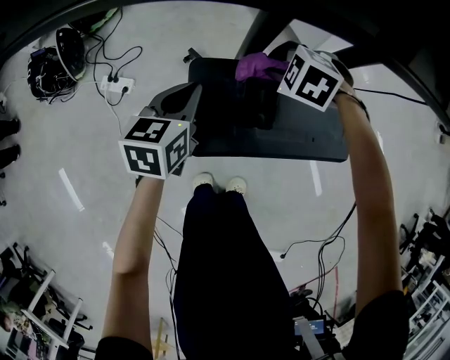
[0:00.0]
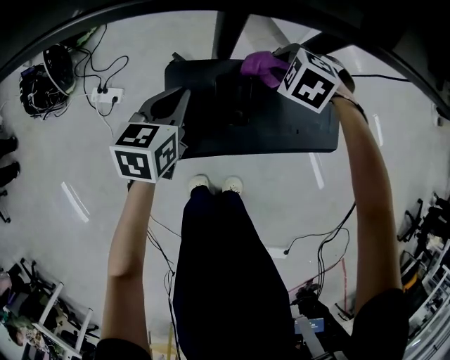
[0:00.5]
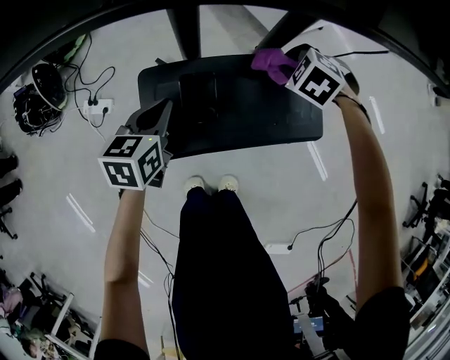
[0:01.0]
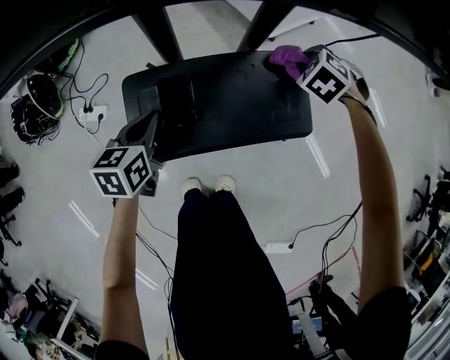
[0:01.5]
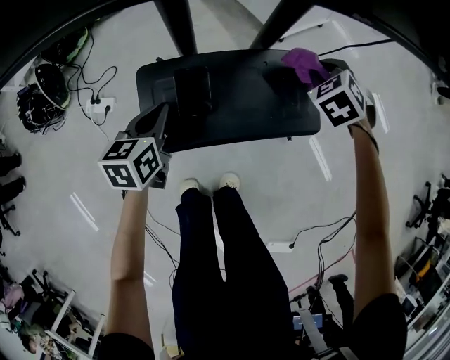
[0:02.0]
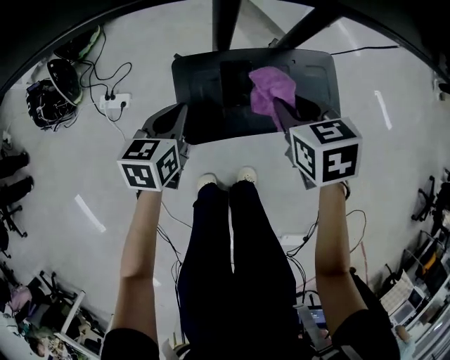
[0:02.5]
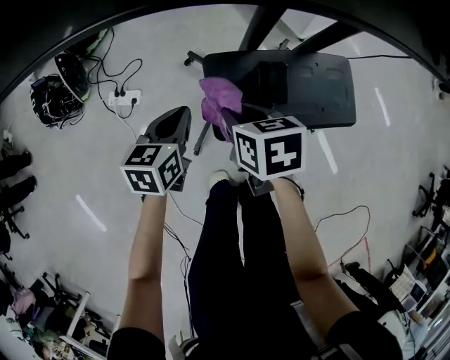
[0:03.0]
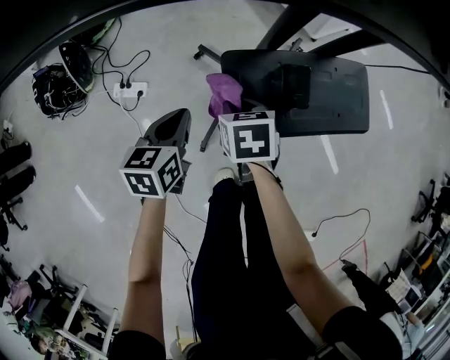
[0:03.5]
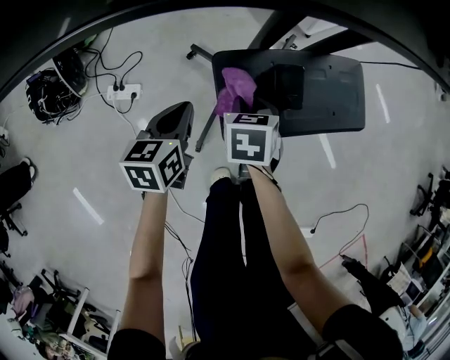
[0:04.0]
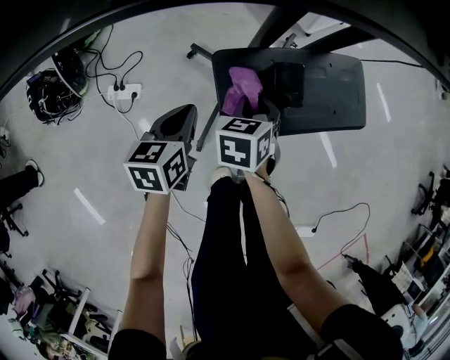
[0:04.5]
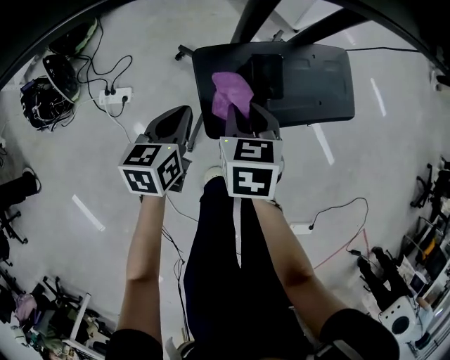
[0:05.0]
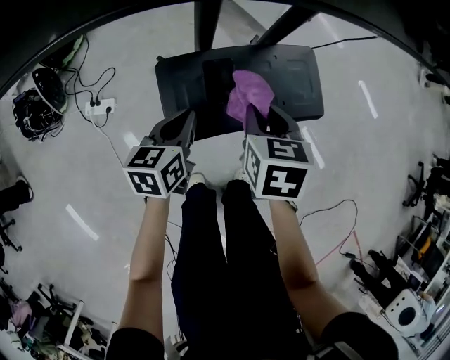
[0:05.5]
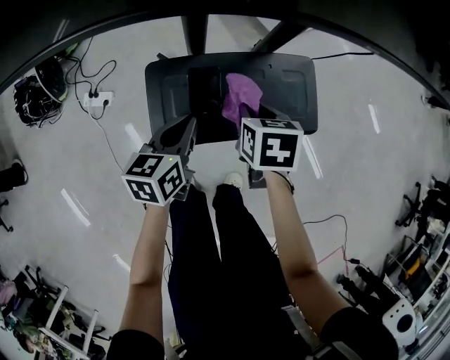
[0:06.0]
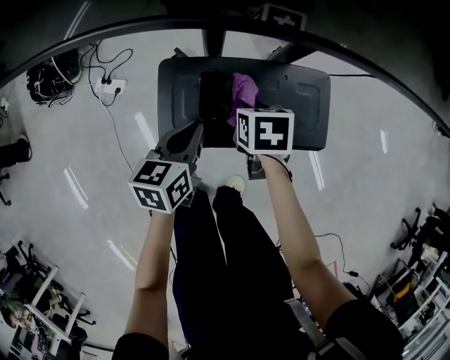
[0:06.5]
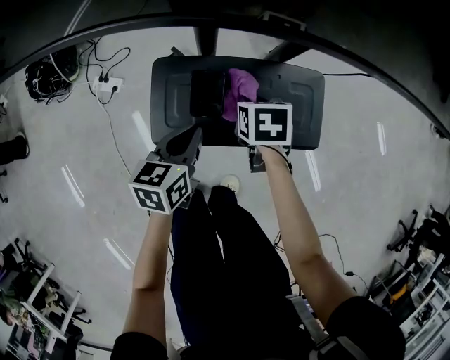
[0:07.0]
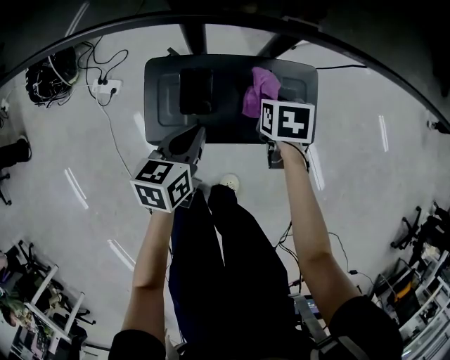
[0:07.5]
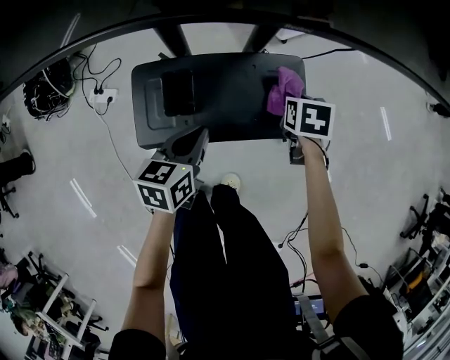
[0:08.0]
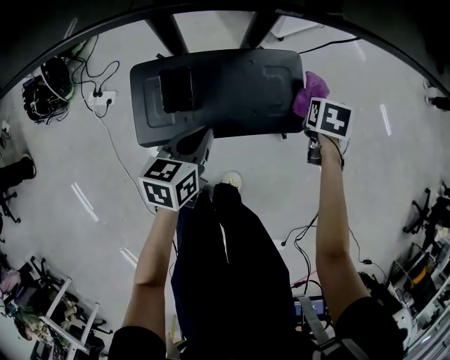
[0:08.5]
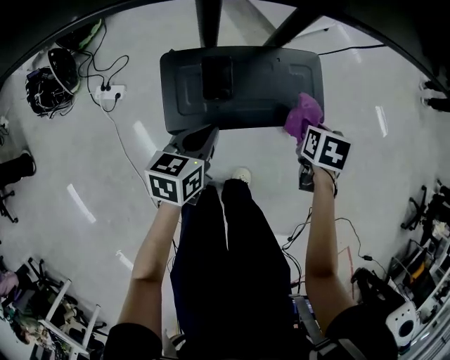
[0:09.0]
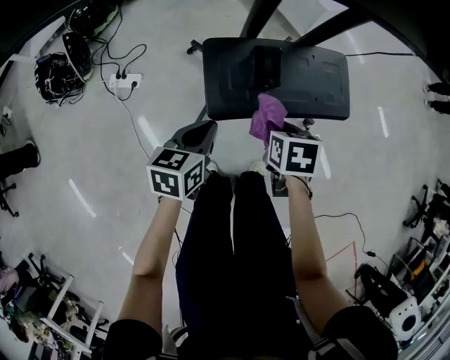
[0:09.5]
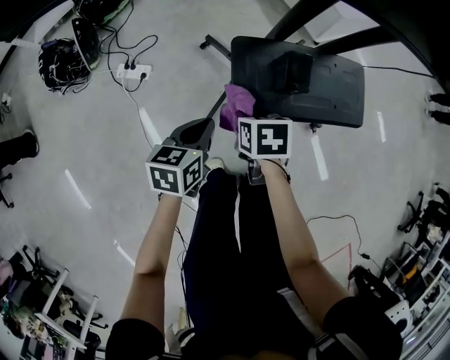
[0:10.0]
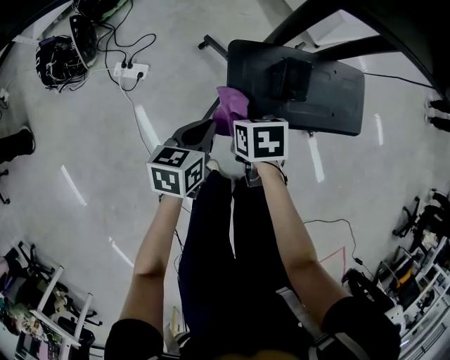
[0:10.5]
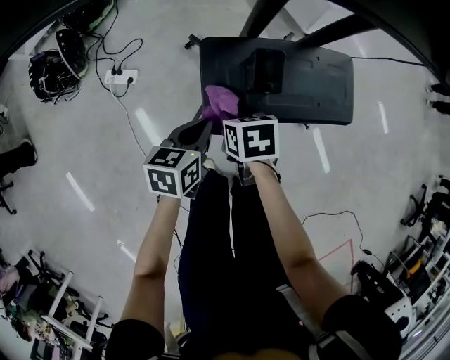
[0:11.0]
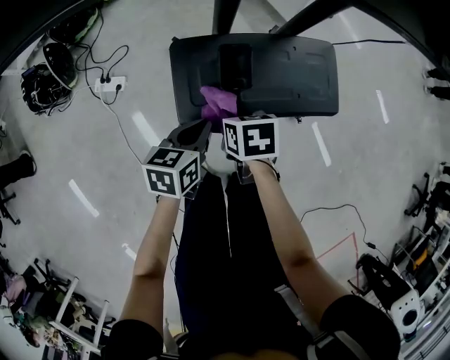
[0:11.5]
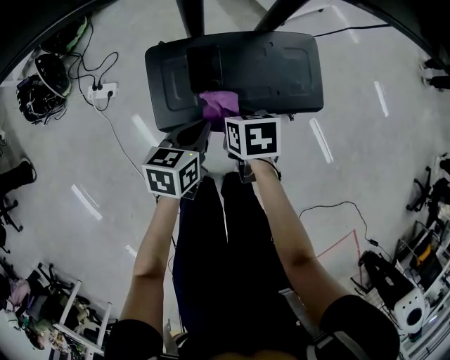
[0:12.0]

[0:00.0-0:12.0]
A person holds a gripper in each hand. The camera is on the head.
0:00.0 to 0:02.0: The right gripper changes place by roughly 25 cm, and swivels roughly 40 degrees, while the left gripper ends up approximately 10 cm from where it was.
0:02.0 to 0:04.0: The right gripper heads to the left, covering roughly 35 cm, and twists approximately 50 degrees clockwise, seen from behind; the left gripper is displaced to the left by approximately 15 cm.
0:04.0 to 0:06.0: Both grippers move to the right, approximately 20 cm.
0:06.0 to 0:08.0: The left gripper moves to the right, roughly 10 cm, while the right gripper is displaced to the right by roughly 20 cm.
0:08.0 to 0:10.0: The left gripper ends up some 30 cm from where it was; the right gripper changes place by roughly 40 cm.
0:10.0 to 0:12.0: The two grippers go approximately 20 cm to the right.

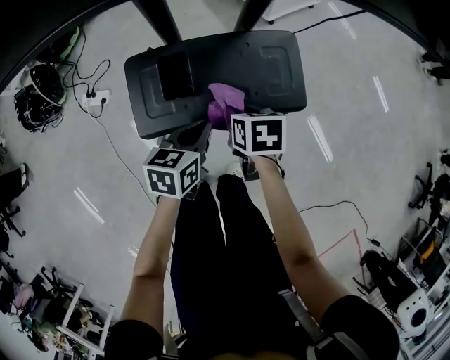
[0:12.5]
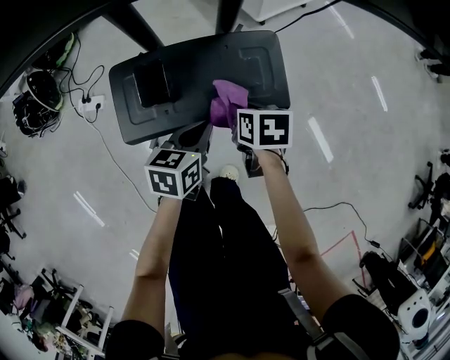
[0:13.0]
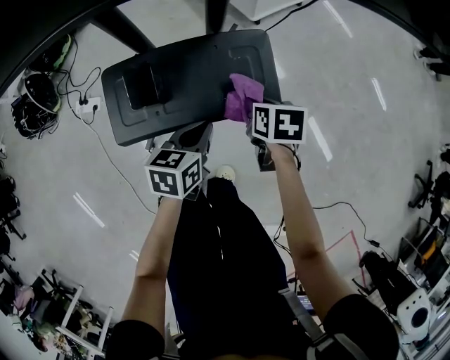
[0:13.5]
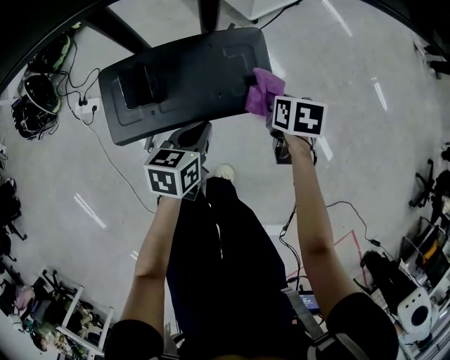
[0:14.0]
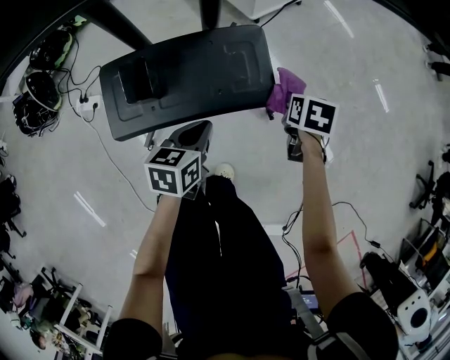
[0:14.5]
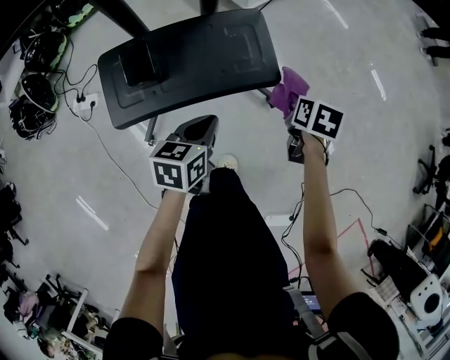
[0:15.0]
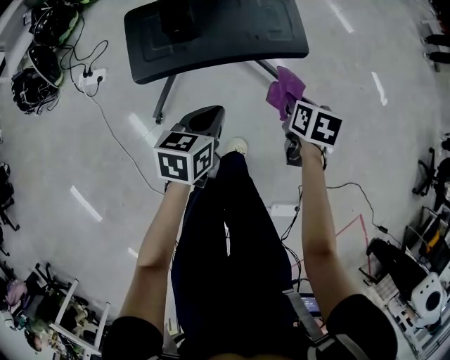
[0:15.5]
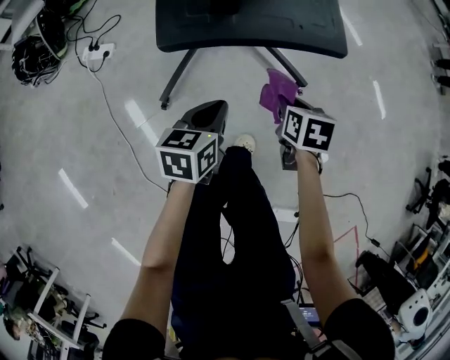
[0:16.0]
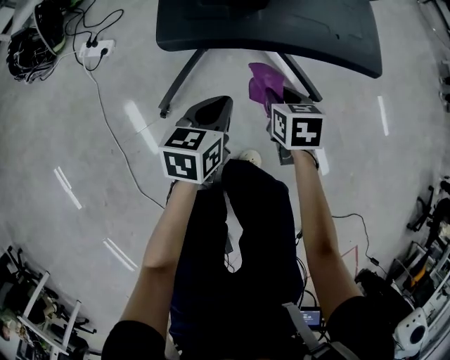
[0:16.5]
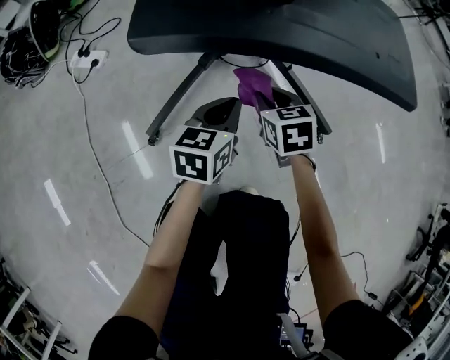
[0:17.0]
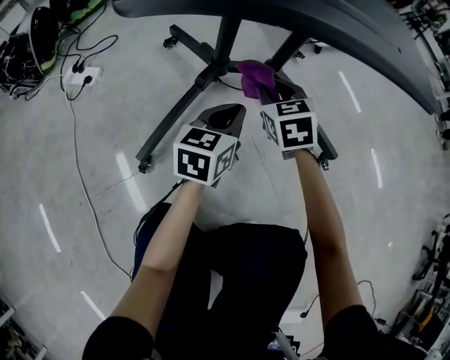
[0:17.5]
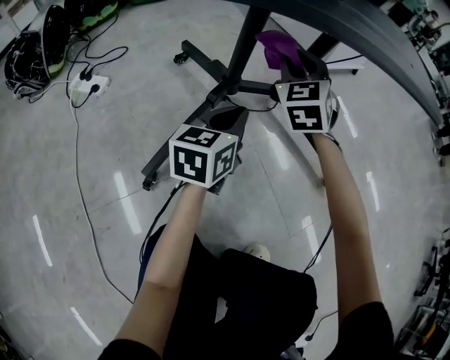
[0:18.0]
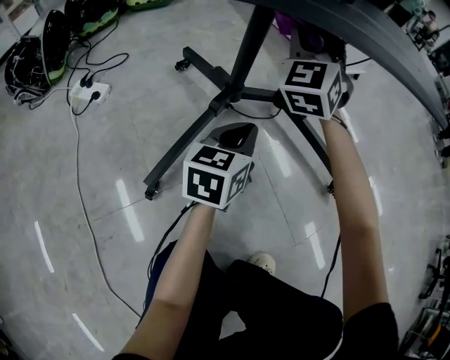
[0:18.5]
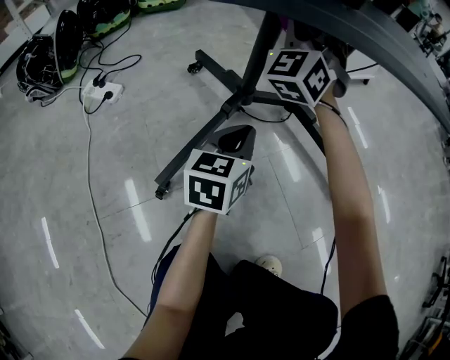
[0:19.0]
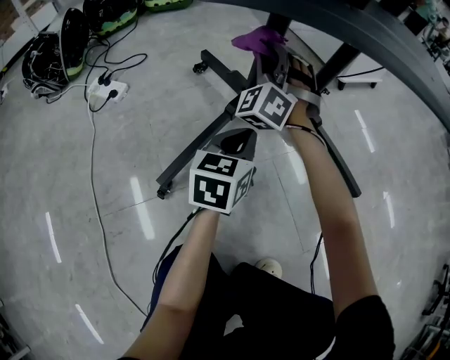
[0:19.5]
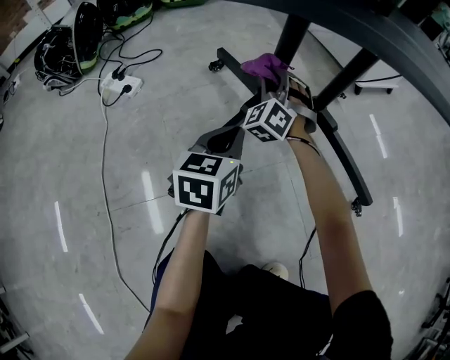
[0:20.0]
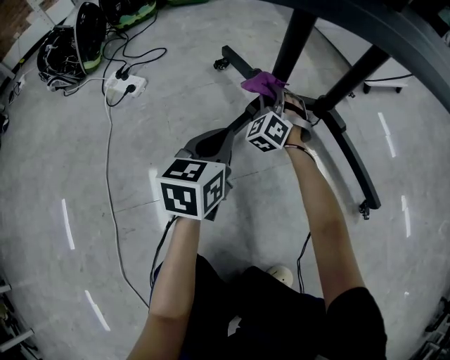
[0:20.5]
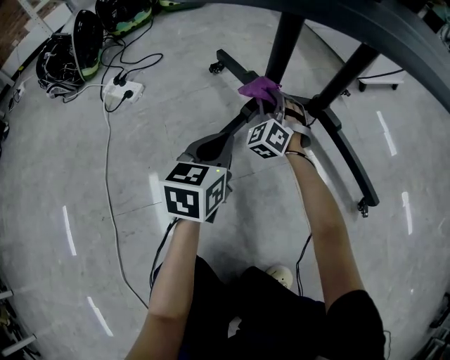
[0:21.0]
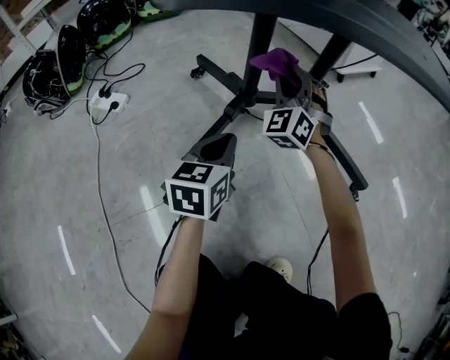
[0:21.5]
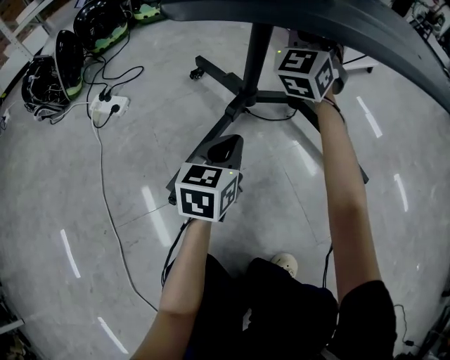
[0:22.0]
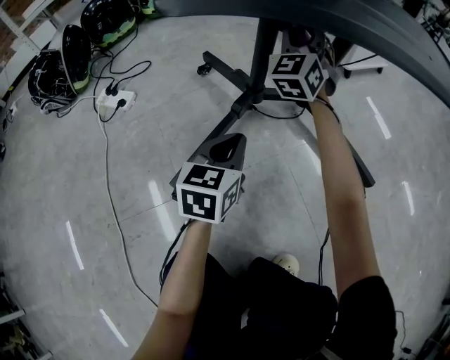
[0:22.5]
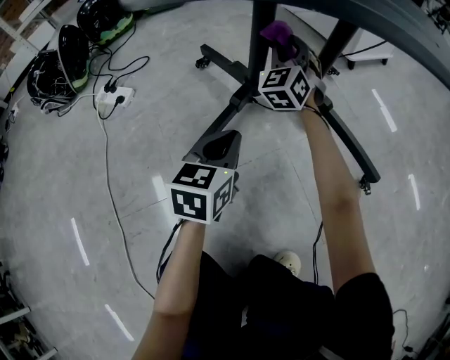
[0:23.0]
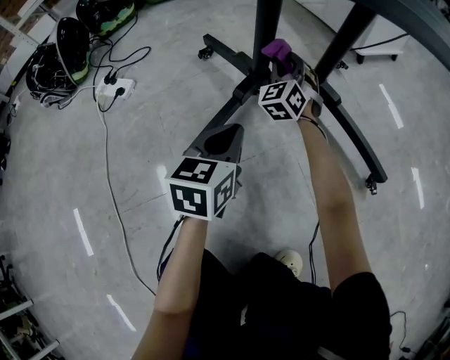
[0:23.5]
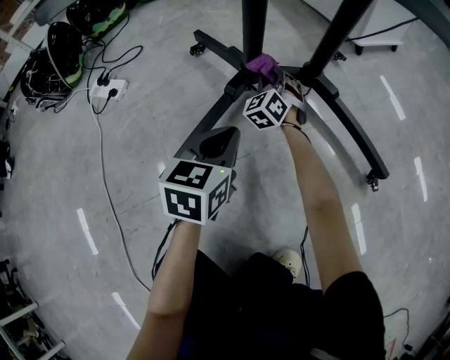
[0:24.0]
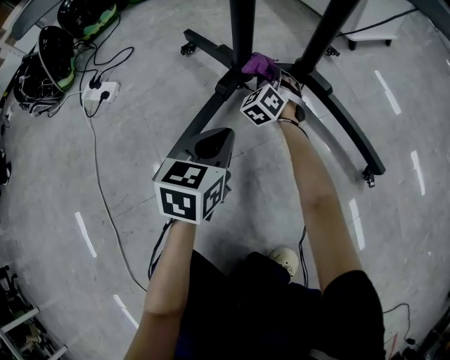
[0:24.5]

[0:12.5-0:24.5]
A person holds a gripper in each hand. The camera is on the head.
0:12.5 to 0:14.5: The left gripper shifts about 10 cm to the right; the right gripper heads to the right, covering roughly 25 cm, and swivels about 20 degrees.
0:14.5 to 0:16.5: The right gripper heads to the left, backward and downward, covering about 35 cm, and changes its angle by roughly 30 degrees; the left gripper travels downward, backward and to the left by approximately 25 cm.
0:16.5 to 0:18.5: The right gripper moves forward and to the left, about 25 cm, and angles its fingers upward, by some 60 degrees. The left gripper moves downward and forward, roughly 25 cm.
0:18.5 to 0:20.5: The right gripper shifts about 30 cm downward, and changes its angle by approximately 30 degrees. Meanwhile the left gripper shifts roughly 10 cm to the left.
0:20.5 to 0:22.5: The left gripper travels to the right by roughly 5 cm; the right gripper travels upward by some 25 cm, and rotates about 30 degrees.
0:22.5 to 0:24.5: The left gripper goes approximately 5 cm downward; the right gripper travels downward by about 35 cm, and tilts its fingers approximately 30 degrees downward.

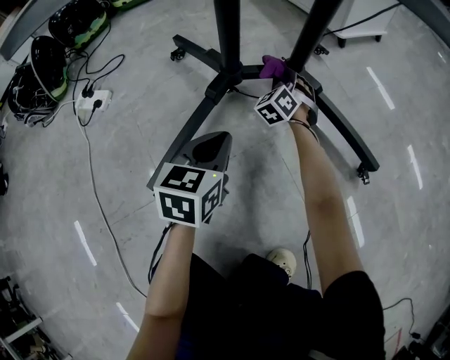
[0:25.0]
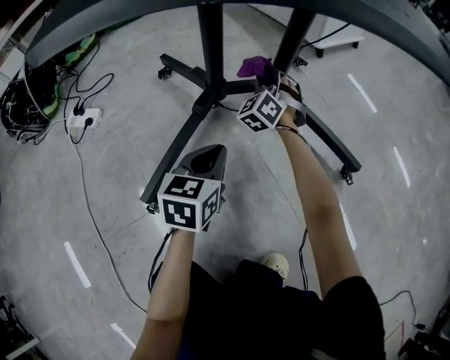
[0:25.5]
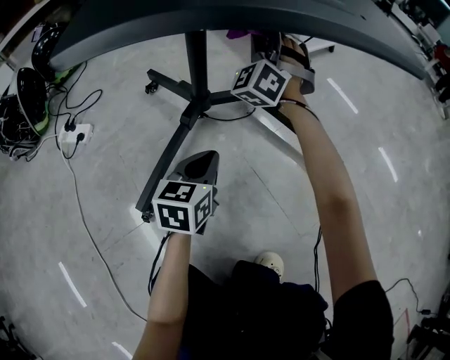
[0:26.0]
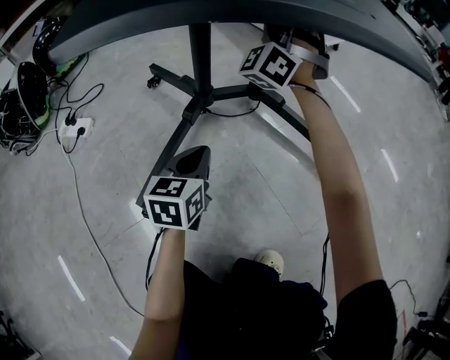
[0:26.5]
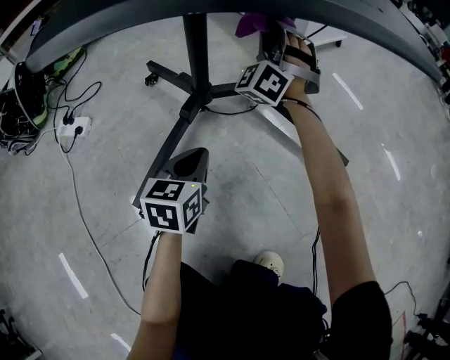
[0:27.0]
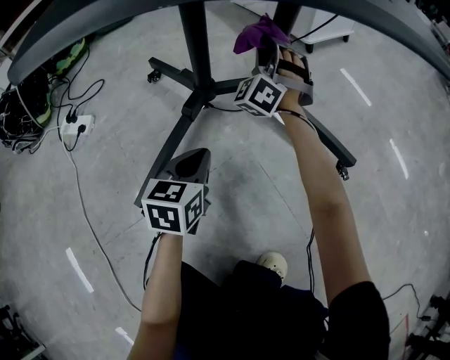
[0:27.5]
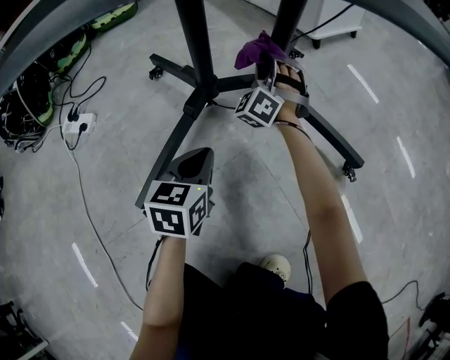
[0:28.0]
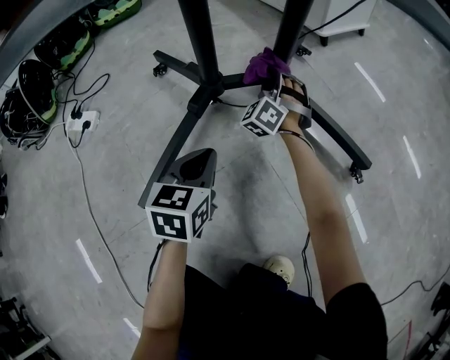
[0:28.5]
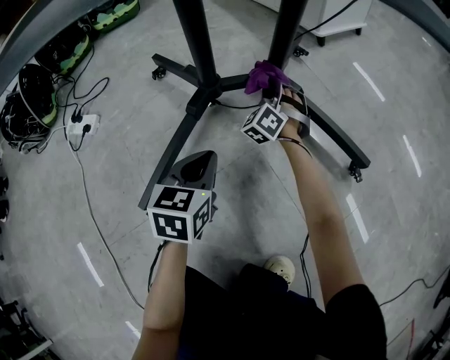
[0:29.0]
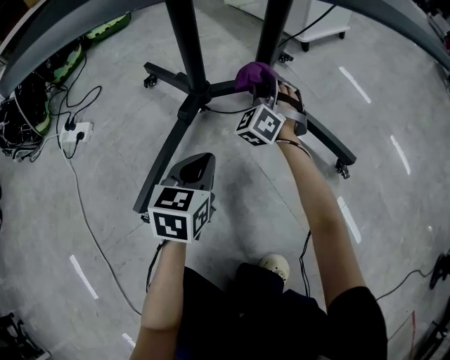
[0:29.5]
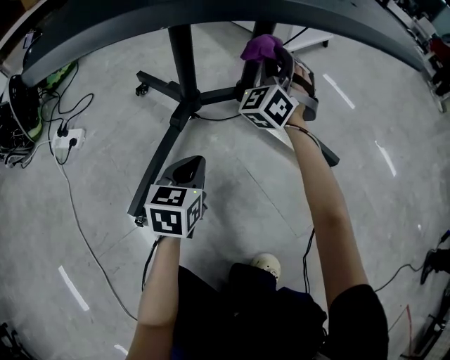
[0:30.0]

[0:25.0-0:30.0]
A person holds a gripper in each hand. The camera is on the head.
0:25.0 to 0:27.5: The right gripper moves upward, some 20 cm, and swivels roughly 30 degrees.
0:27.5 to 0:30.0: The right gripper heads to the right, covering approximately 5 cm, and travels downward and back again, approximately 20 cm each way.
